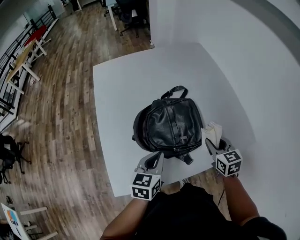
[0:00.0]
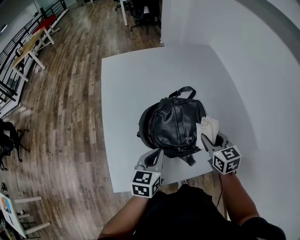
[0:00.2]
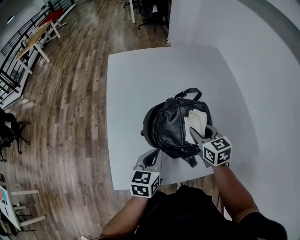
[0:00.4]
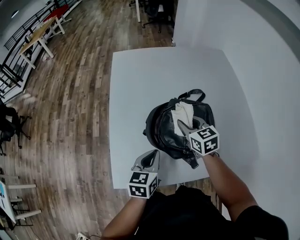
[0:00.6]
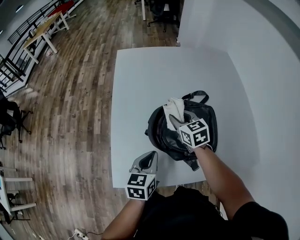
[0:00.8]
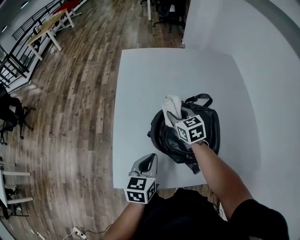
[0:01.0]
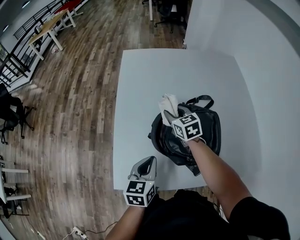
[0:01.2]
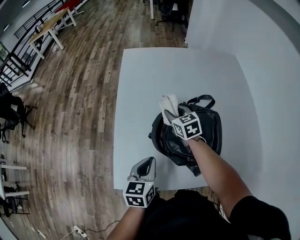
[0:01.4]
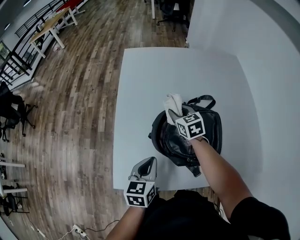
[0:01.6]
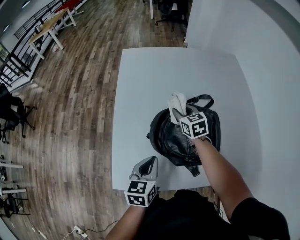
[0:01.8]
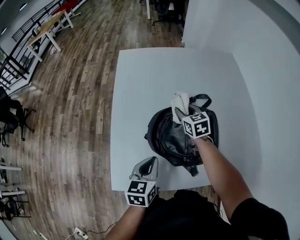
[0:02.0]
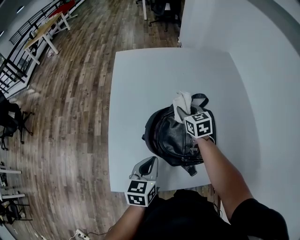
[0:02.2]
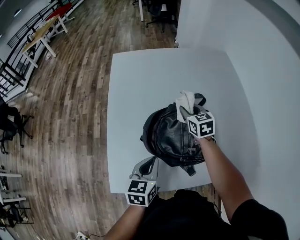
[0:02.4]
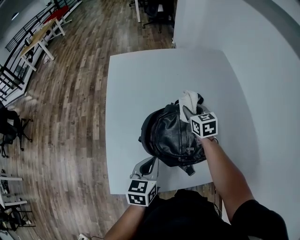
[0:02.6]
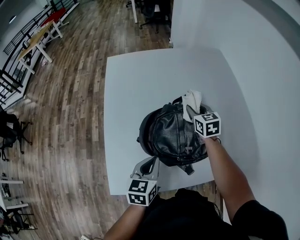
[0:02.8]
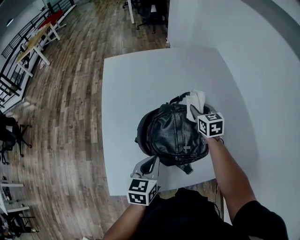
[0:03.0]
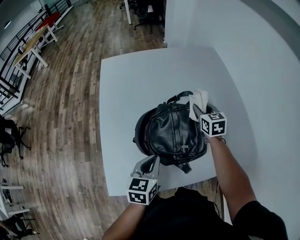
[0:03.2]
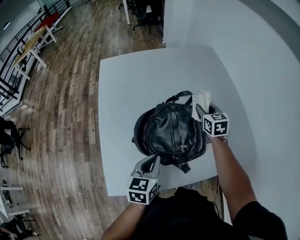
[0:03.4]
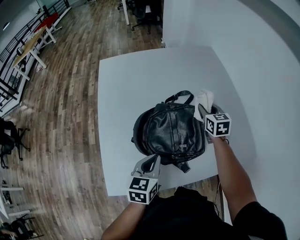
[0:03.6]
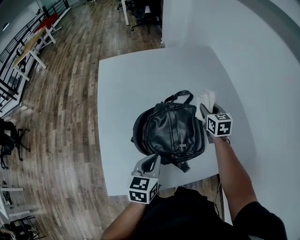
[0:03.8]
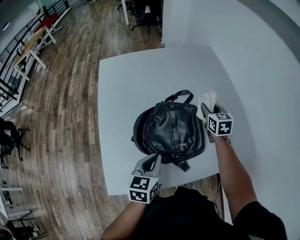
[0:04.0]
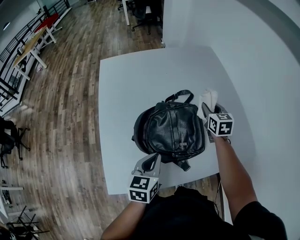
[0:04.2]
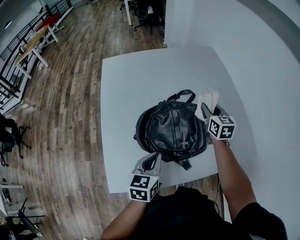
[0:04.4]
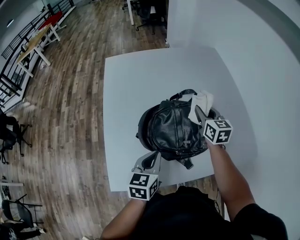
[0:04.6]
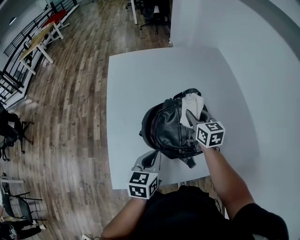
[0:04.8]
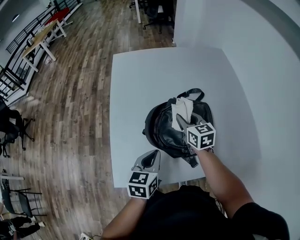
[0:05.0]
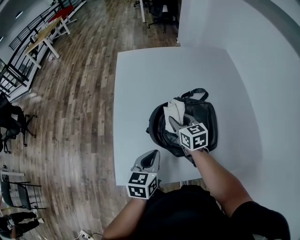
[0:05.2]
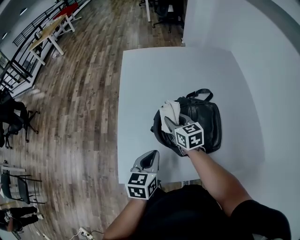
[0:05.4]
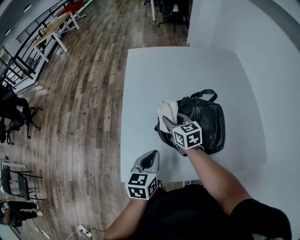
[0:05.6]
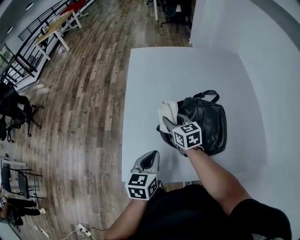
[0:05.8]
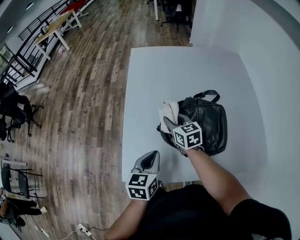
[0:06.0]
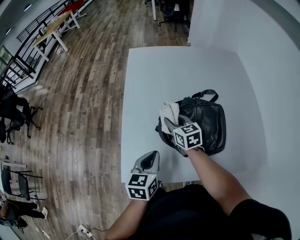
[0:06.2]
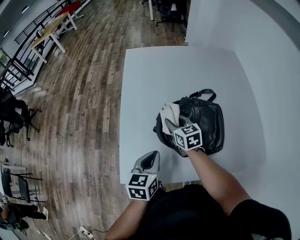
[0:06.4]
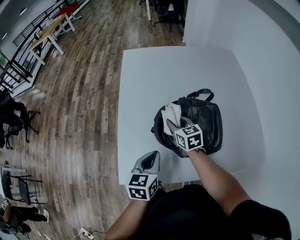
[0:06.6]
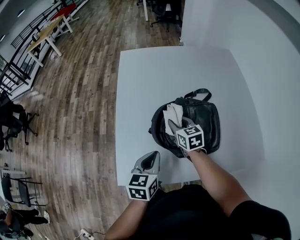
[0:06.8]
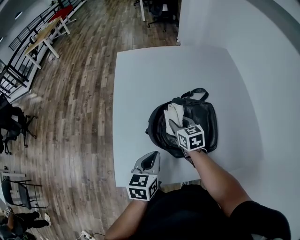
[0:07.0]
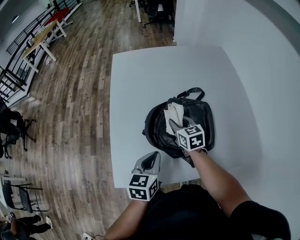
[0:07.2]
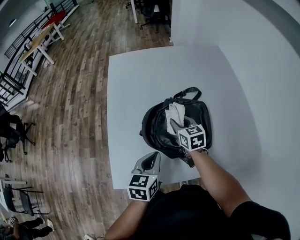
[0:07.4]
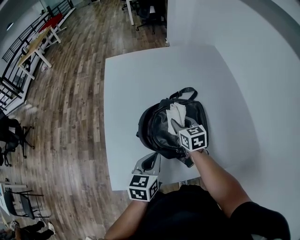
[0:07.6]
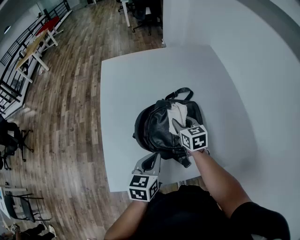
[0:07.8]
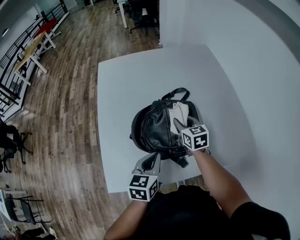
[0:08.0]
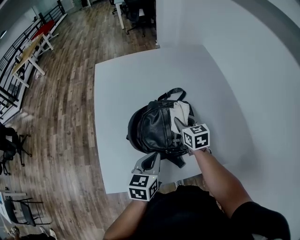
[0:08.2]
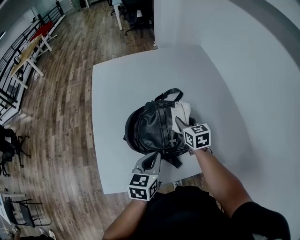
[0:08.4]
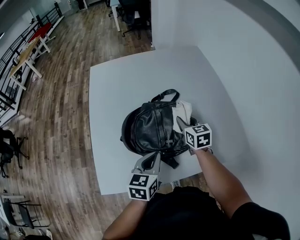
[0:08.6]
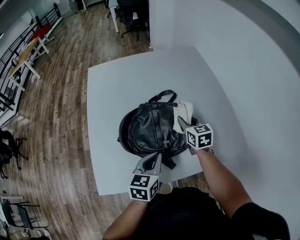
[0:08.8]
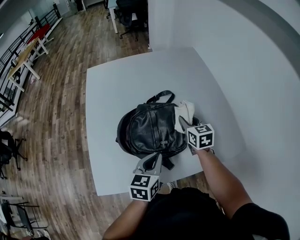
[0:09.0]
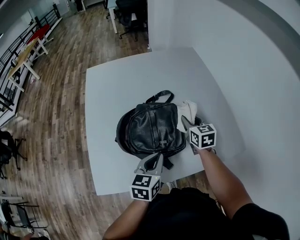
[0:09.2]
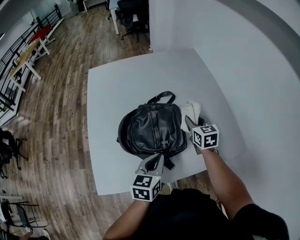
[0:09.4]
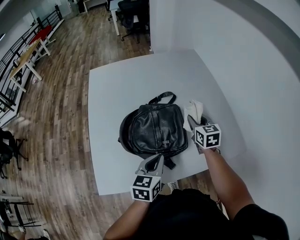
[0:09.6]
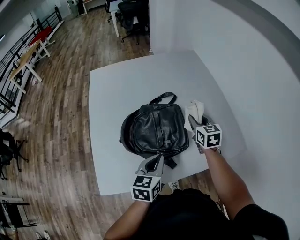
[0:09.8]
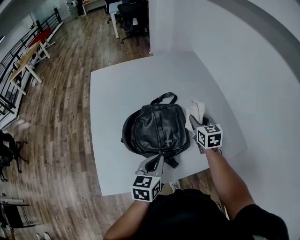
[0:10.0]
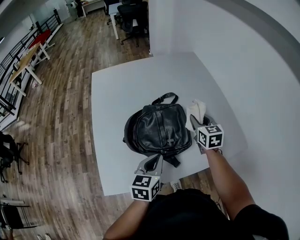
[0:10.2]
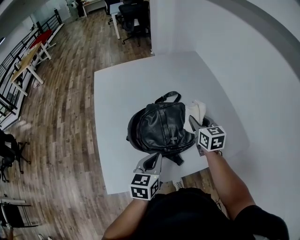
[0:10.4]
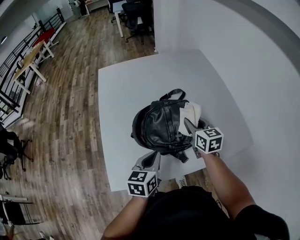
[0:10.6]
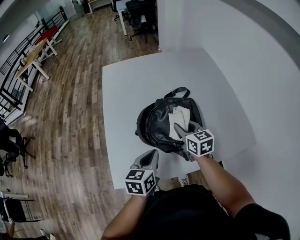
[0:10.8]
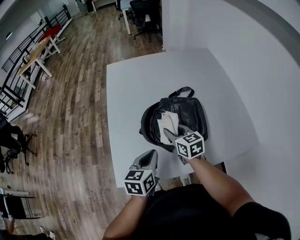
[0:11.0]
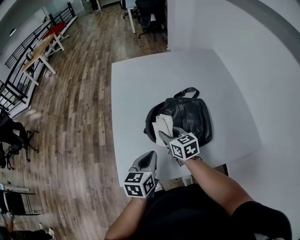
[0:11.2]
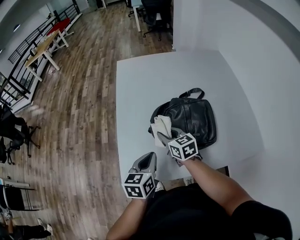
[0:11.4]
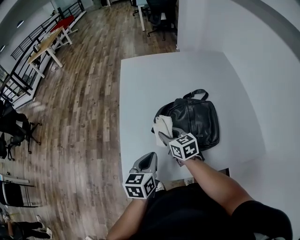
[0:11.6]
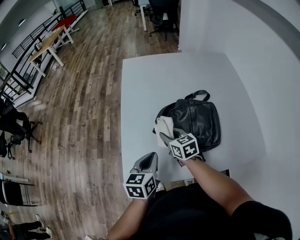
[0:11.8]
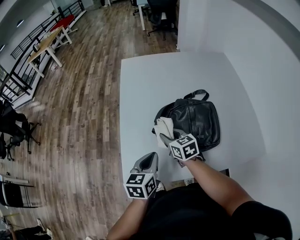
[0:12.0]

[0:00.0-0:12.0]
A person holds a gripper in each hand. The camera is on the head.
0:00.0 to 0:01.6: The left gripper shifts by about 10 cm, and swivels some 20 degrees. Meanwhile the right gripper shifts by approximately 35 cm, and changes its angle by some 30 degrees.
0:01.6 to 0:03.0: The left gripper is displaced to the right by some 5 cm. Meanwhile the right gripper is displaced to the right by some 20 cm.
0:03.0 to 0:04.4: The right gripper moves to the right, about 5 cm.
0:04.4 to 0:06.0: The left gripper moves to the left, approximately 10 cm. Meanwhile the right gripper travels to the left by roughly 30 cm, and rotates some 30 degrees.
0:06.0 to 0:07.6: The left gripper moves to the right, approximately 10 cm. The right gripper travels to the right by approximately 15 cm.
0:07.6 to 0:09.0: The grippers both shift to the right by about 15 cm.
0:09.0 to 0:10.4: The right gripper moves some 5 cm. Meanwhile the left gripper is displaced to the left by approximately 5 cm.
0:10.4 to 0:12.0: The right gripper is displaced to the left by roughly 30 cm, and turns by about 30 degrees. Meanwhile the left gripper moves to the left, some 15 cm.

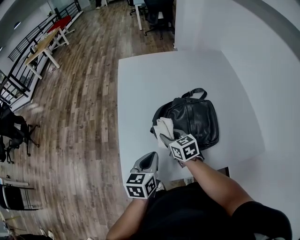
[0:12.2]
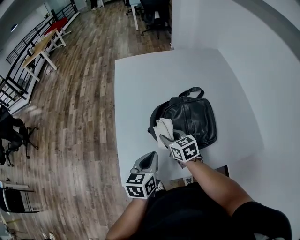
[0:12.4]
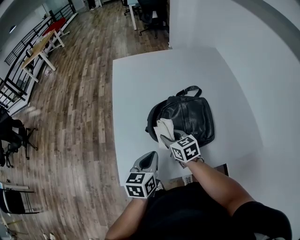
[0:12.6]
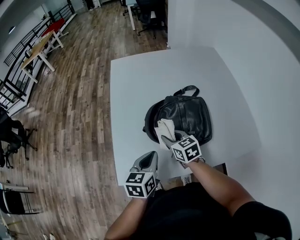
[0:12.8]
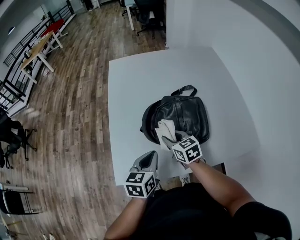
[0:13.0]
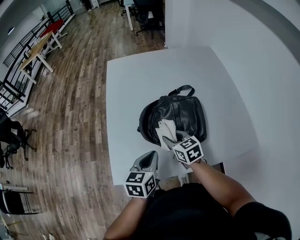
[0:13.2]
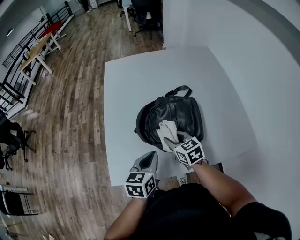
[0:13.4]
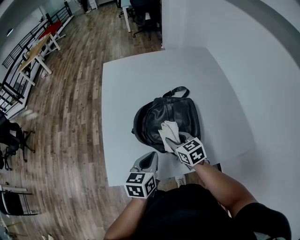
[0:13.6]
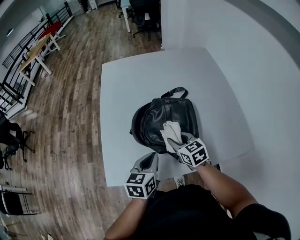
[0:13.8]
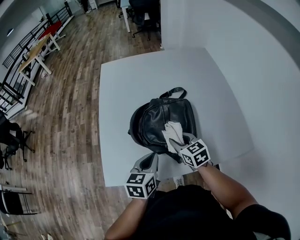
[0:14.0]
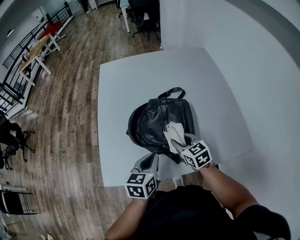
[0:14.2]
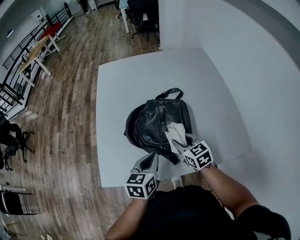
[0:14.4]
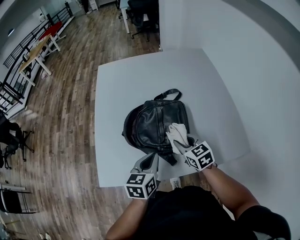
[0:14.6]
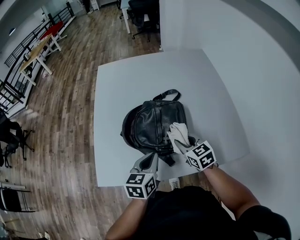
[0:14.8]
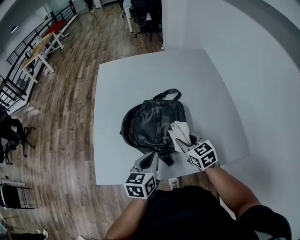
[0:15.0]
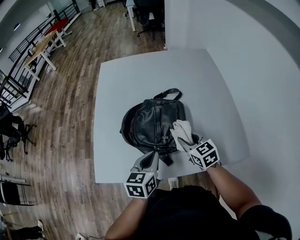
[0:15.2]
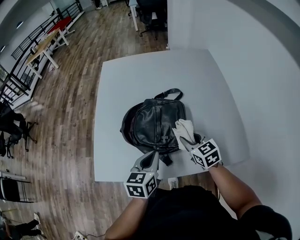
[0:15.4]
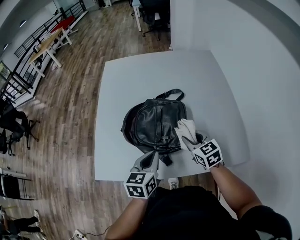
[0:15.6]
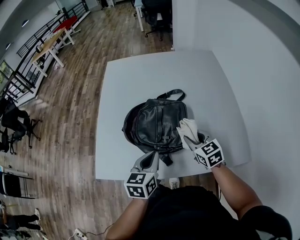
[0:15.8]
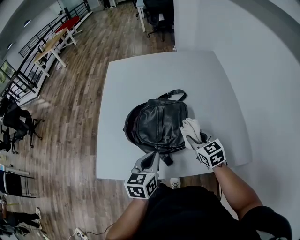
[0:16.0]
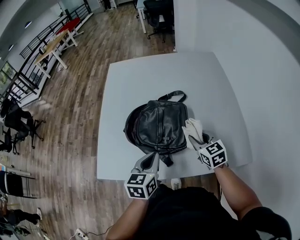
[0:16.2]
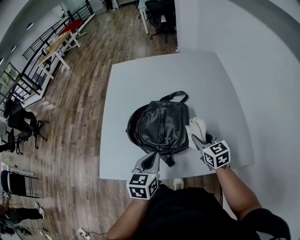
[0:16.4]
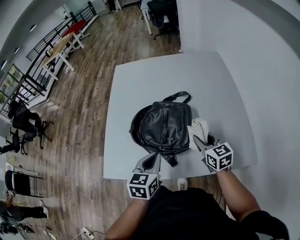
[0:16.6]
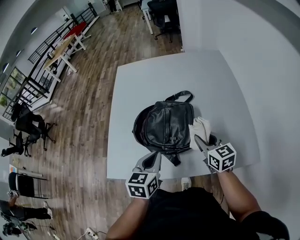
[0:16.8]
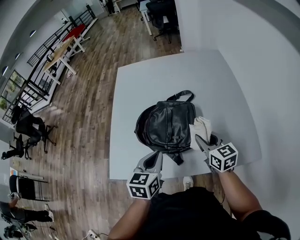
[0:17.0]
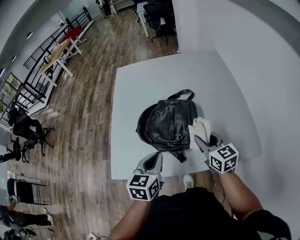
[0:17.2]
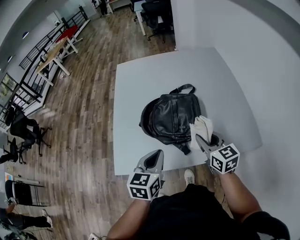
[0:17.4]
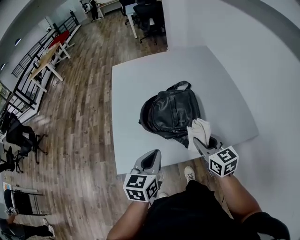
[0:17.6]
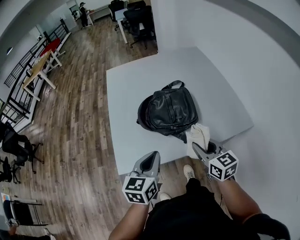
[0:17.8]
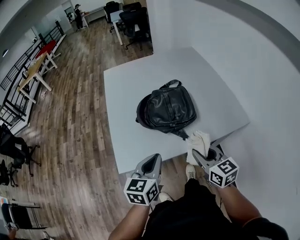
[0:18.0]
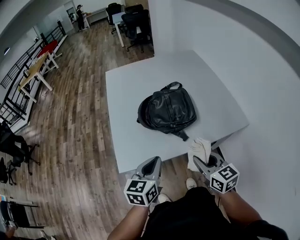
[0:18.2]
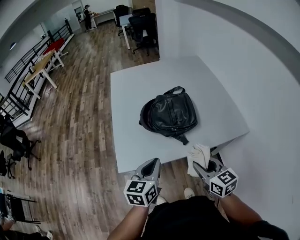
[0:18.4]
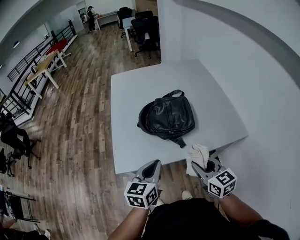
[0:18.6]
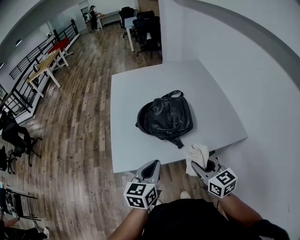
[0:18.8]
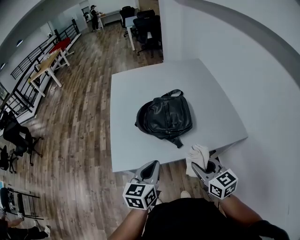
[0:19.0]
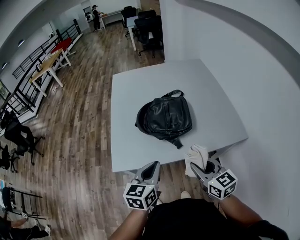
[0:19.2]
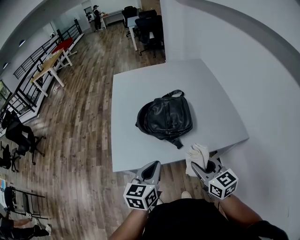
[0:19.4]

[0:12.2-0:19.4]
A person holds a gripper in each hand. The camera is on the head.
0:12.2 to 0:13.6: Both grippers move to the right, some 10 cm.
0:13.6 to 0:15.0: The two grippers go approximately 10 cm to the right.
0:15.0 to 0:16.6: The right gripper shifts roughly 5 cm to the right.
0:16.6 to 0:18.0: Both grippers move backward and to the left, roughly 25 cm.
0:18.0 to 0:19.4: The right gripper moves some 5 cm. The left gripper heads to the right, covering approximately 5 cm.

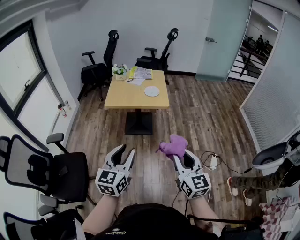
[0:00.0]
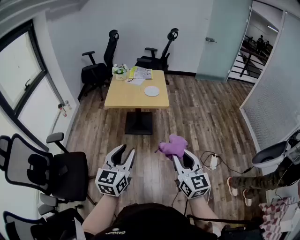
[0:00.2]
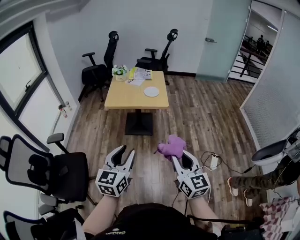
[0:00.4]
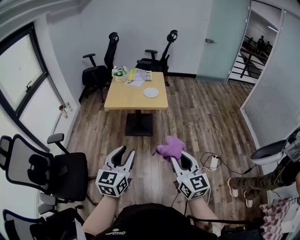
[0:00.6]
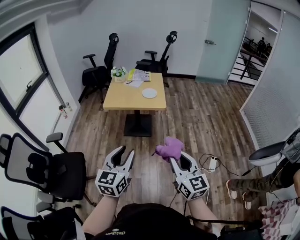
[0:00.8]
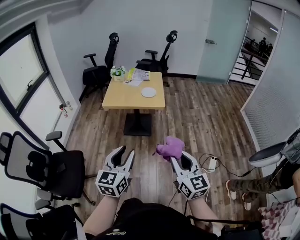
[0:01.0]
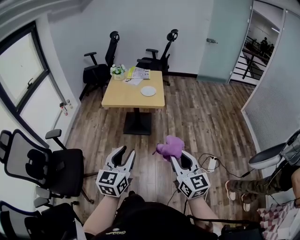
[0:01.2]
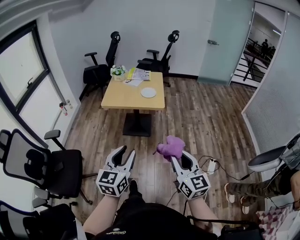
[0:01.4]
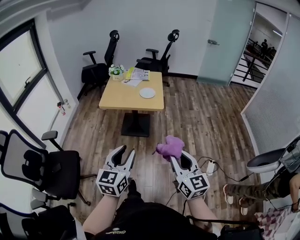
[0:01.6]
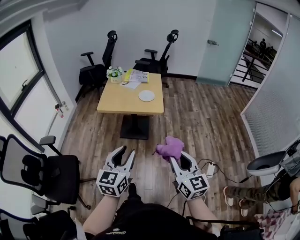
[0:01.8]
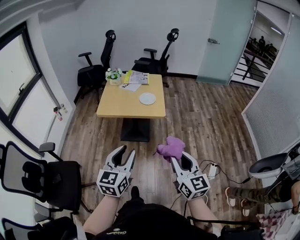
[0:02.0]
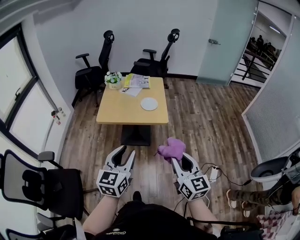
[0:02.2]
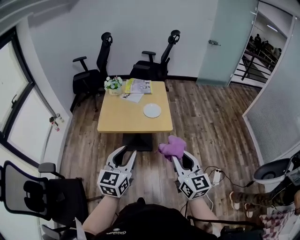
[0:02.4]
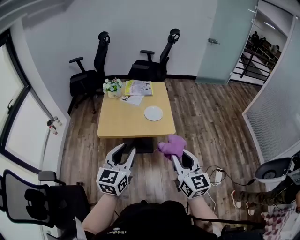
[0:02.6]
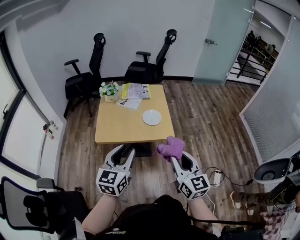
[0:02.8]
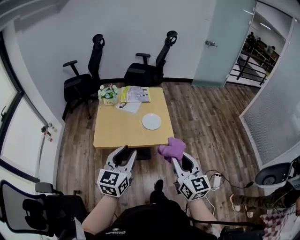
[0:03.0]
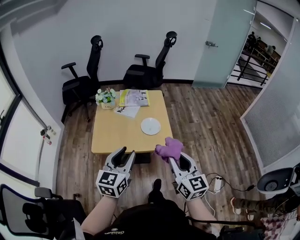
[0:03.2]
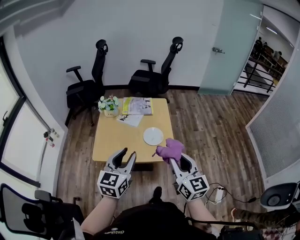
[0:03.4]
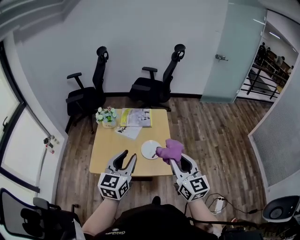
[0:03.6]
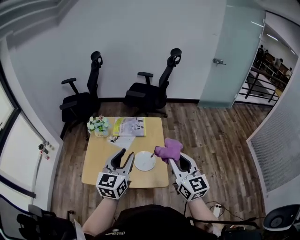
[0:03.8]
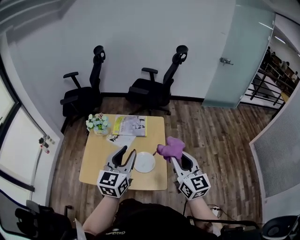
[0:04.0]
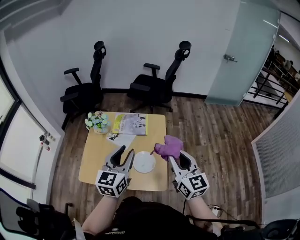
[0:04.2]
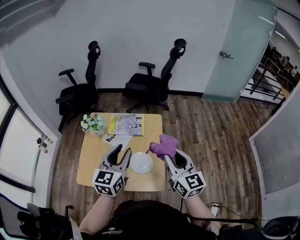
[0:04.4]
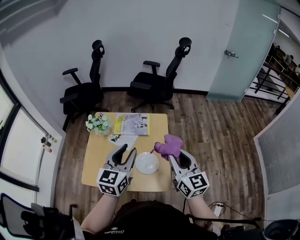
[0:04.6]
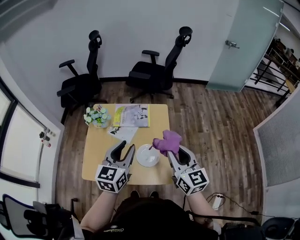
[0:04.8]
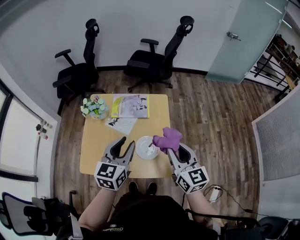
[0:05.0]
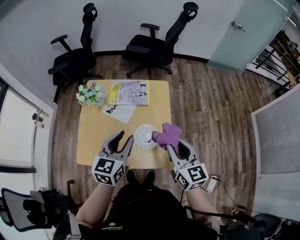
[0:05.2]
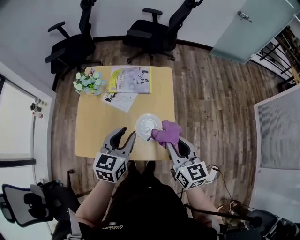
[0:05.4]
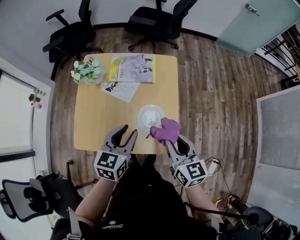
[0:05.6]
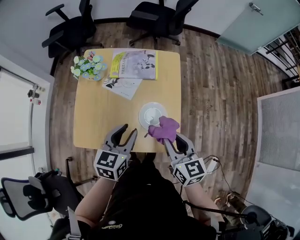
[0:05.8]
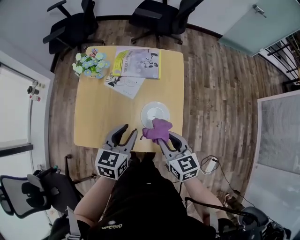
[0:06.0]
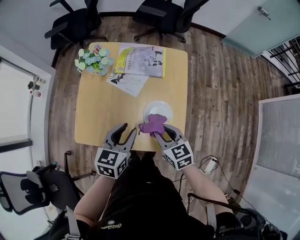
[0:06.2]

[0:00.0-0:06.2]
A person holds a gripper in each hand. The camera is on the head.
0:00.0 to 0:01.6: The grippers both shift to the right by about 5 cm.
0:01.6 to 0:03.2: Both grippers are carried forward, roughly 40 cm.
0:03.2 to 0:04.6: The two grippers go some 30 cm forward.
0:04.6 to 0:06.2: The right gripper is displaced downward and to the left by approximately 25 cm, and angles its fingers downward, by roughly 30 degrees, while the left gripper moves downward, some 20 cm, and turns by approximately 30 degrees.
